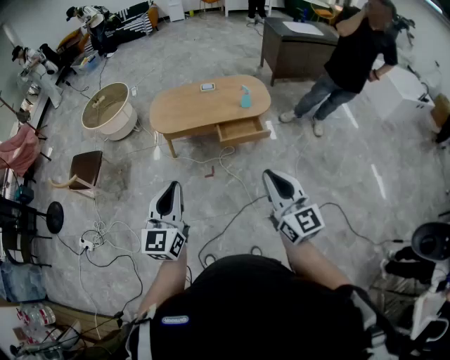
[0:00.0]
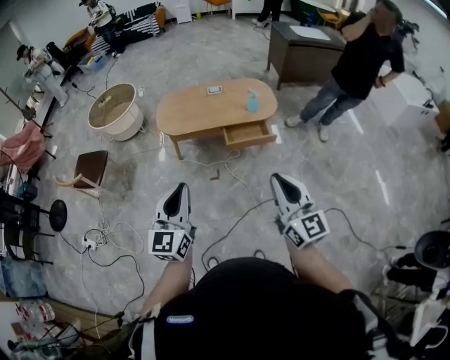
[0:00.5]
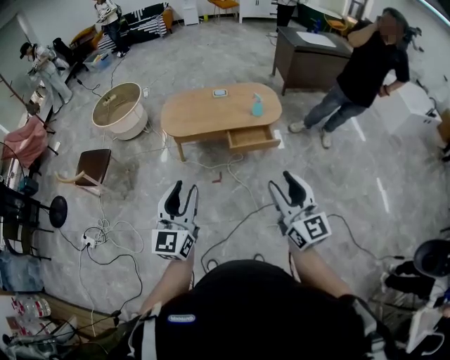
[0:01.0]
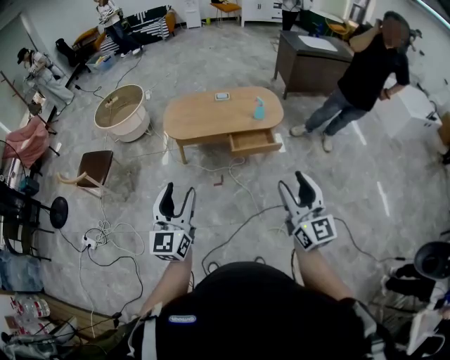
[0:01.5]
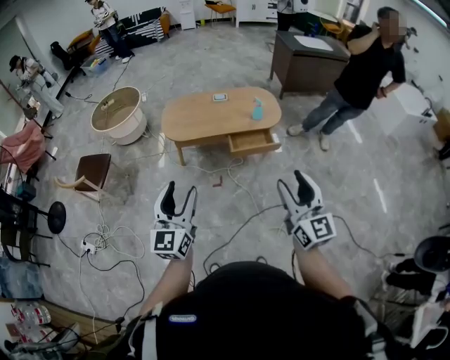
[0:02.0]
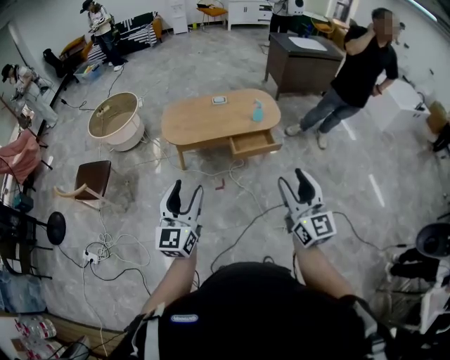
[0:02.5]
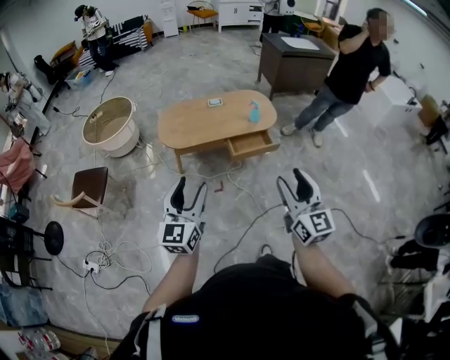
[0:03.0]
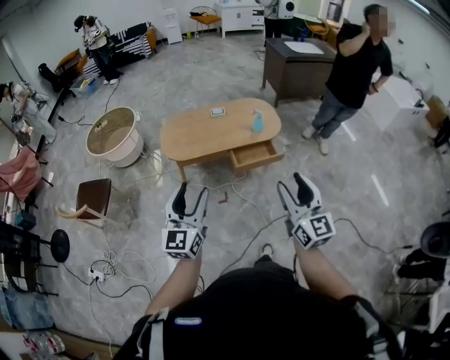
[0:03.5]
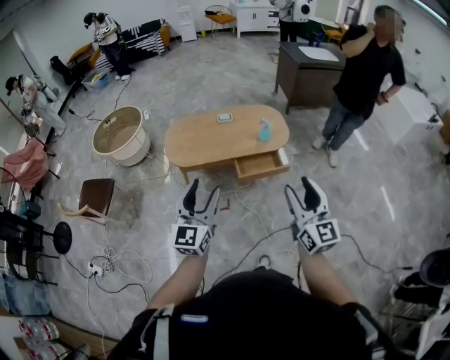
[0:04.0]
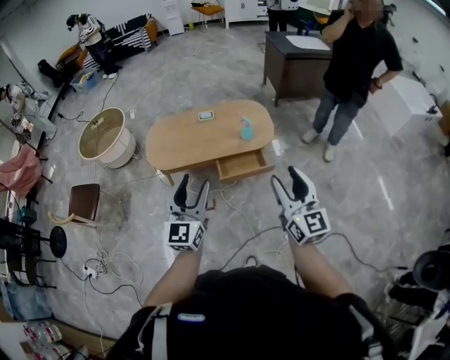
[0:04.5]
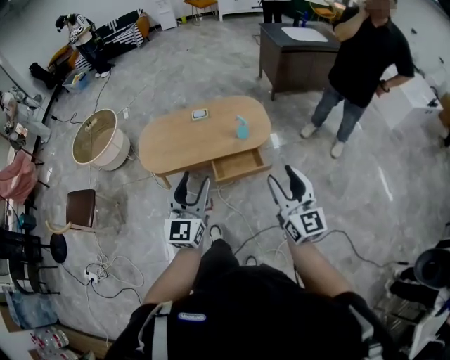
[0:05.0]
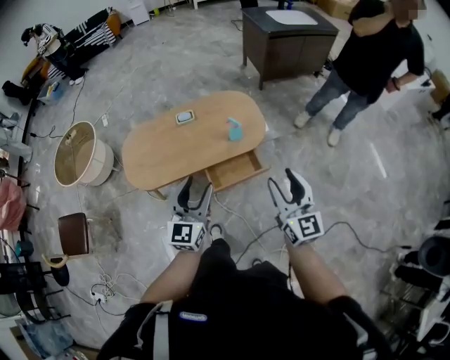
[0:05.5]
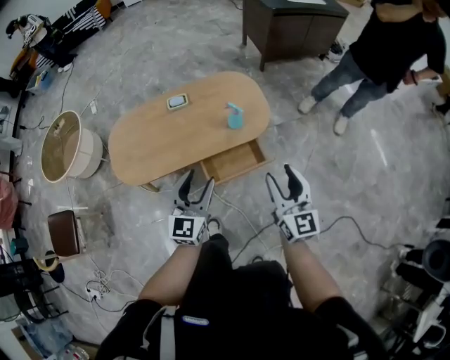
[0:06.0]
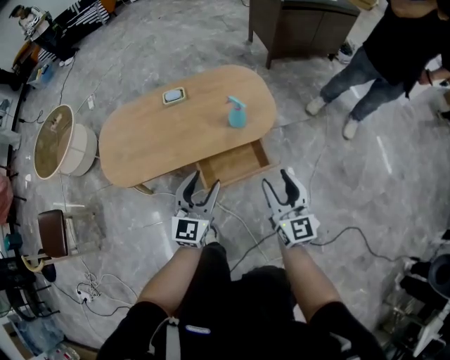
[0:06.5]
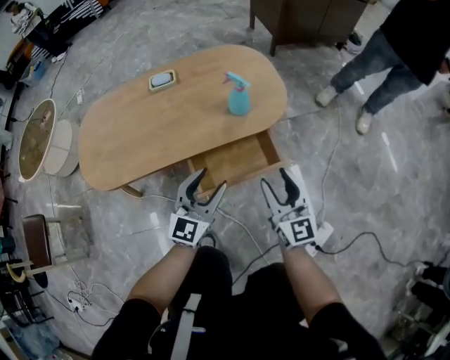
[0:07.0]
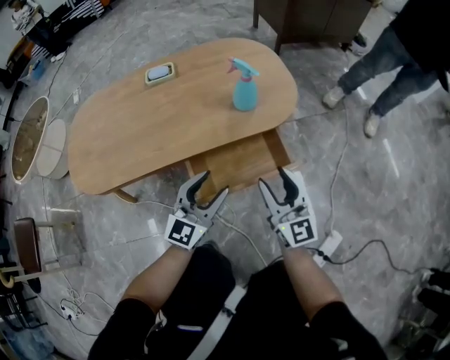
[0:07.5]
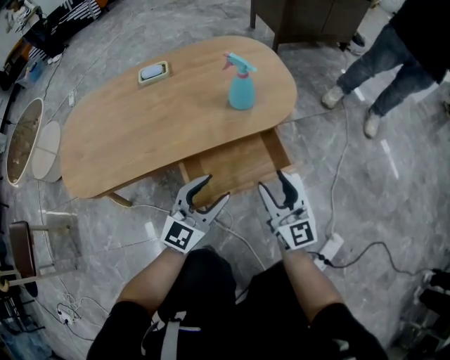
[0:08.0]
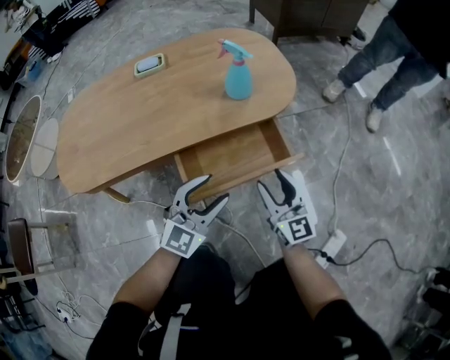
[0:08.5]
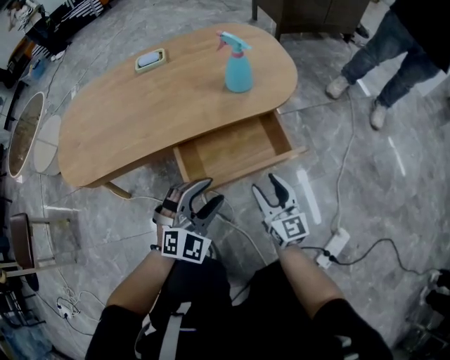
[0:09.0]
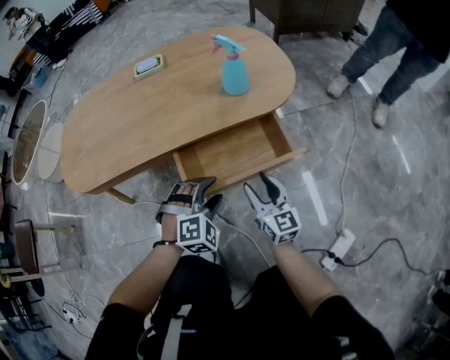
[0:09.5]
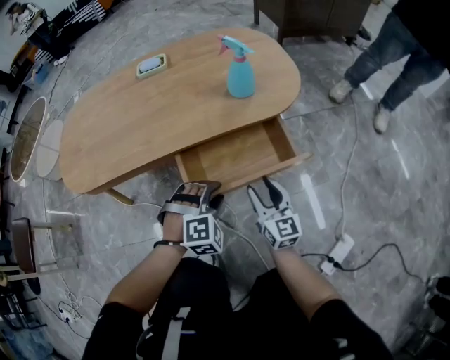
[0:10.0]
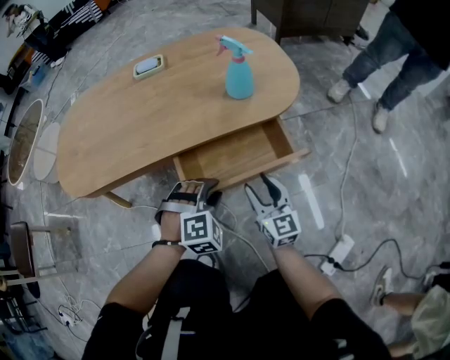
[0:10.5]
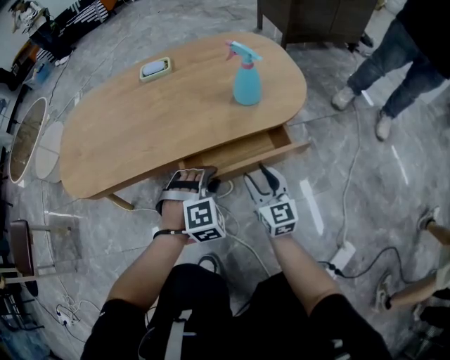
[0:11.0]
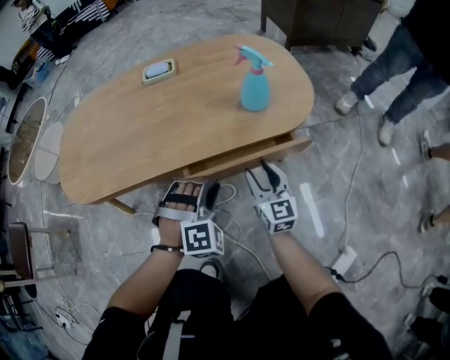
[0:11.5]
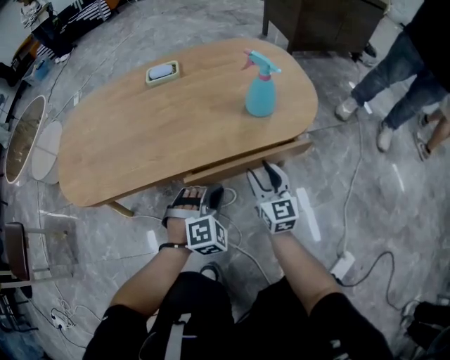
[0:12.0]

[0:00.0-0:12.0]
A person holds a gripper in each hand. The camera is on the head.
0:00.0 to 0:02.0: The right gripper opens up; the left gripper opens its fingers.
0:02.0 to 0:04.0: The grippers both shift forward by some 15 cm.
0:04.0 to 0:06.0: Both grippers move forward and downward, approximately 40 cm.
0:06.0 to 0:08.0: Both grippers move downward, about 35 cm. The left gripper rotates about 20 degrees.
0:08.0 to 0:10.0: Both grippers travel together downward, roughly 15 cm. The left gripper tilts its fingers roughly 50 degrees downward.
0:10.0 to 0:12.0: The right gripper goes about 10 cm forward. The left gripper is displaced forward by roughly 10 cm, and closes its fingers.

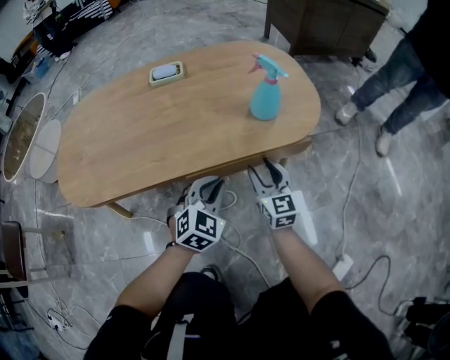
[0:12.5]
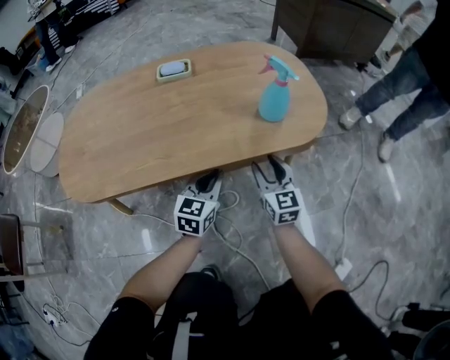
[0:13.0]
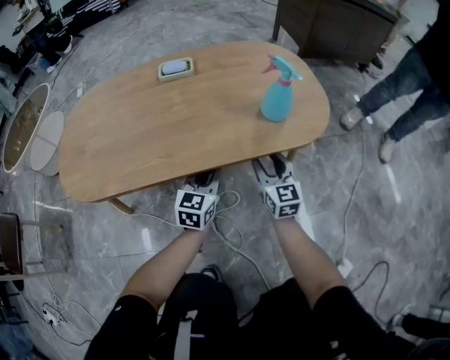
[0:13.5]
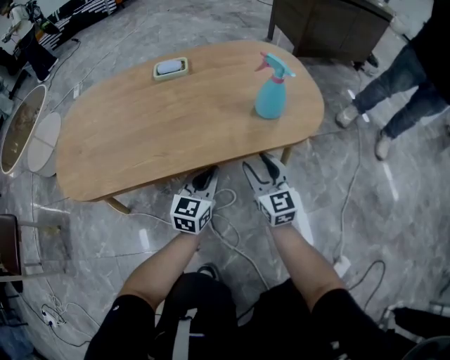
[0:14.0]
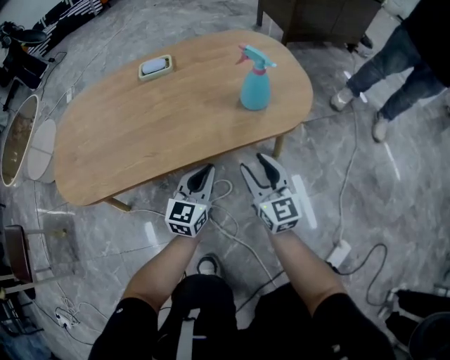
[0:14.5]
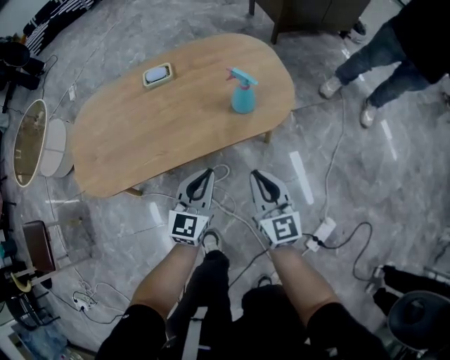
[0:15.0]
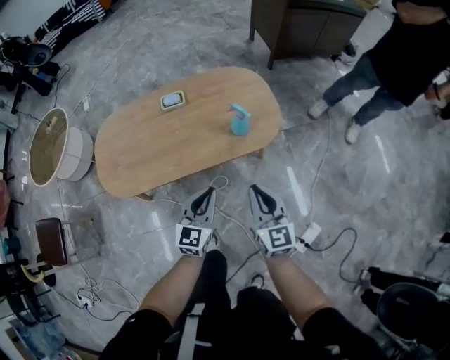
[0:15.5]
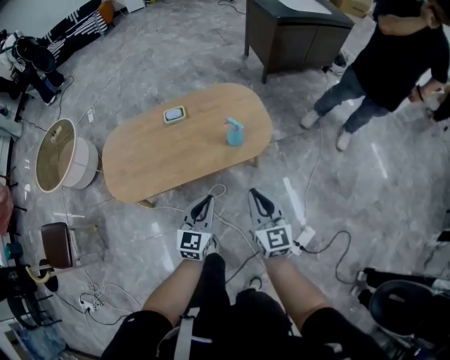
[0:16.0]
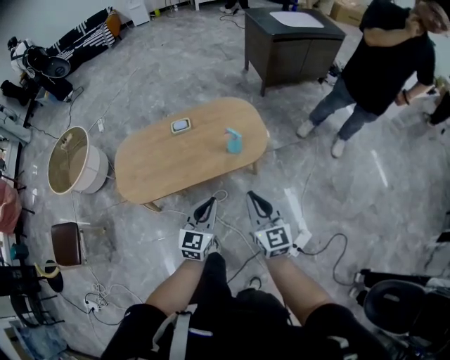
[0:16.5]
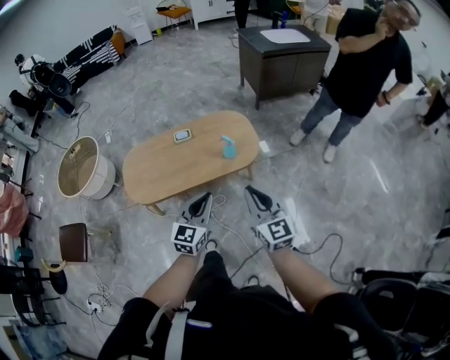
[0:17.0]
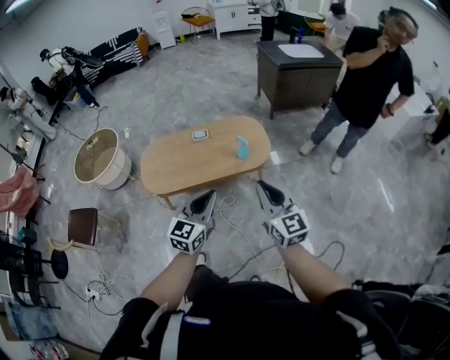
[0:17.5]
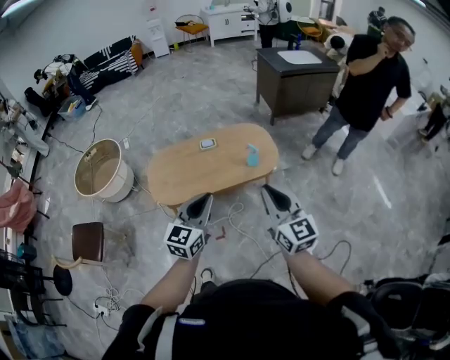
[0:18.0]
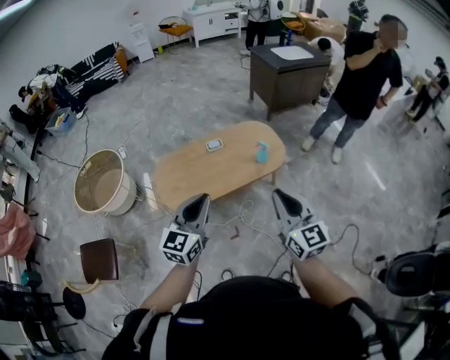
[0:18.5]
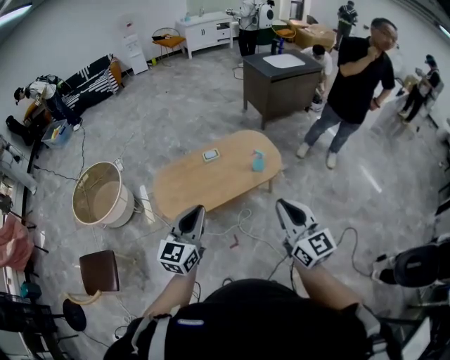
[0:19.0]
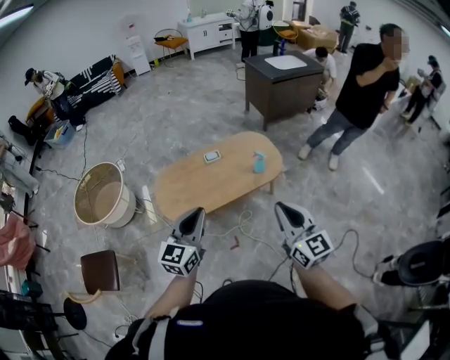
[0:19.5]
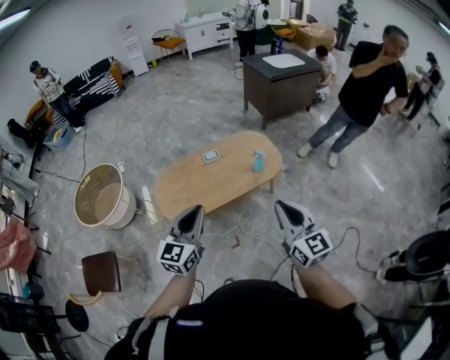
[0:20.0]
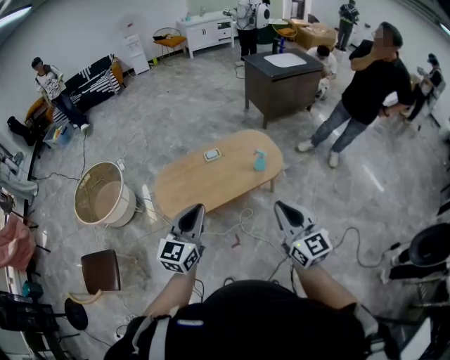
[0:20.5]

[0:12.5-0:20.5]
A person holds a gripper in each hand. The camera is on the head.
0:12.5 to 0:14.5: The left gripper swivels roughly 40 degrees. The right gripper goes some 5 cm upward.
0:14.5 to 0:16.5: The two grippers go roughly 40 cm upward. The right gripper closes.
0:16.5 to 0:18.5: The grippers both shift upward, to the left and backward by approximately 35 cm.
0:18.5 to 0:20.5: There are only small adjustments of the grippers.

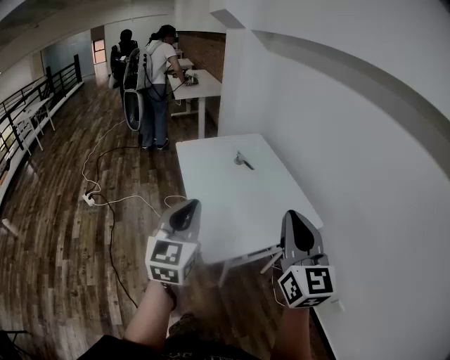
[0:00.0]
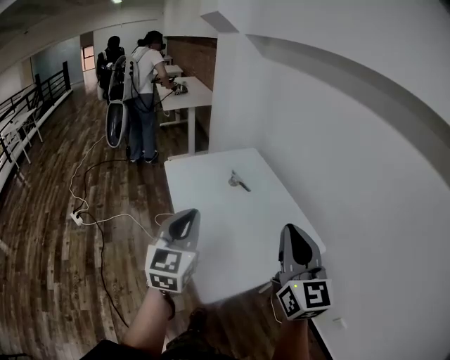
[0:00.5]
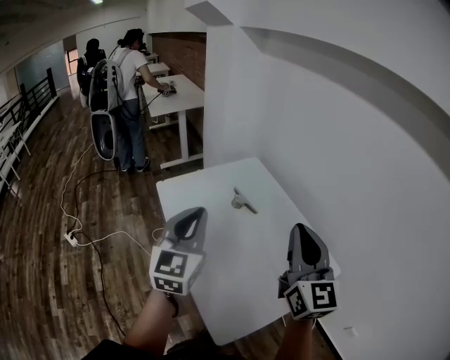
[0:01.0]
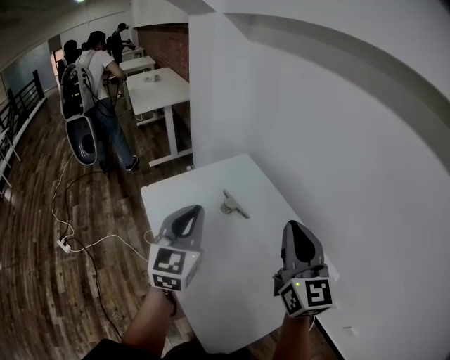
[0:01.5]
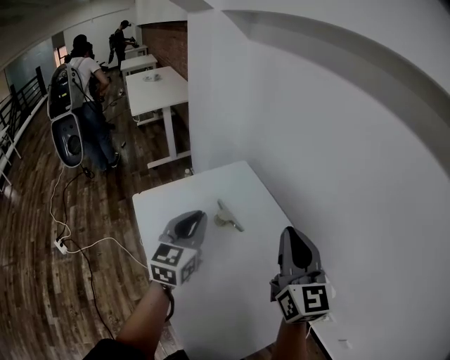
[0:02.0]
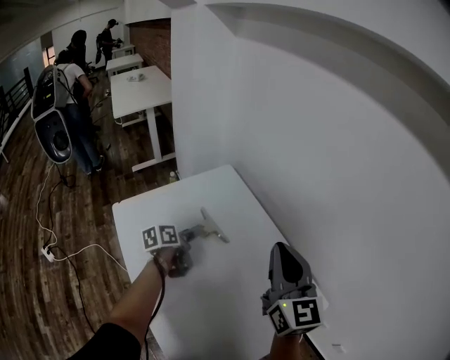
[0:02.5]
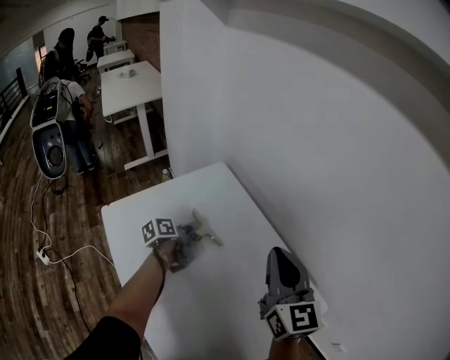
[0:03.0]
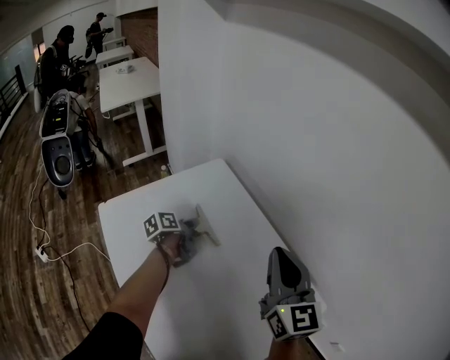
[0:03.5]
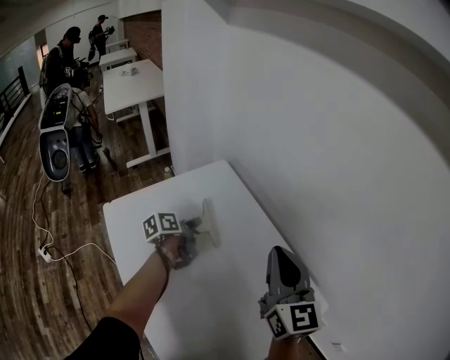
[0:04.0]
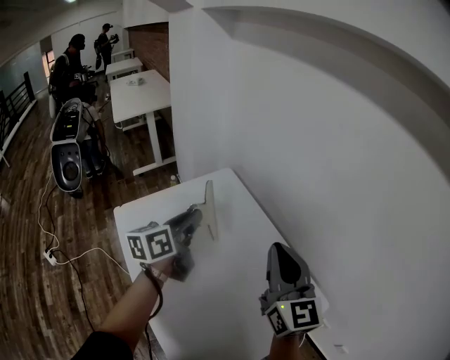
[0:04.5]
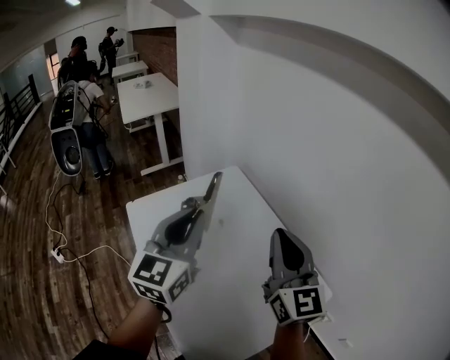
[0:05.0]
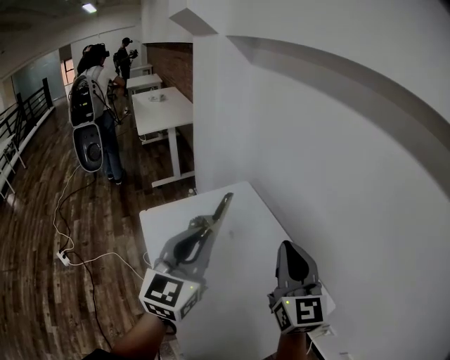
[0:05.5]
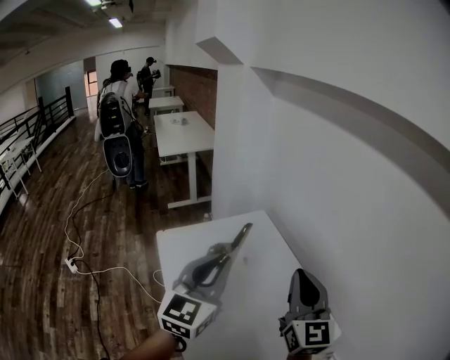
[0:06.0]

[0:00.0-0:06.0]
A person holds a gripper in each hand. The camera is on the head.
0:00.0 to 0:02.0: The two grippers go some 40 cm forward.
0:02.0 to 0:04.0: The left gripper travels downward and forward by roughly 25 cm, twists approximately 60 degrees counterclockwise, seen from behind, and opens and closes again. The right gripper shifts approximately 5 cm downward.
0:04.0 to 0:06.0: The right gripper travels upward and backward by approximately 10 cm. Meanwhile the left gripper heads upward and backward, covering approximately 40 cm, and twists approximately 60 degrees clockwise, seen from behind.

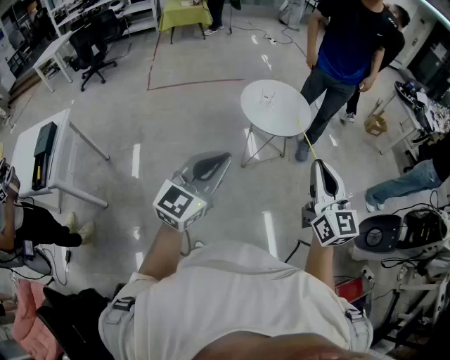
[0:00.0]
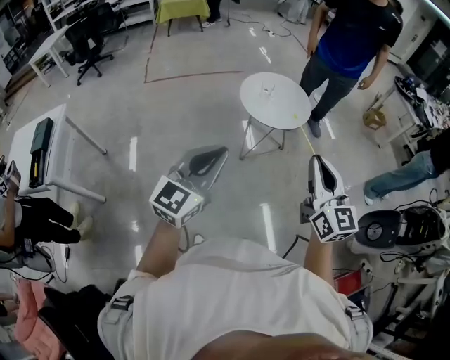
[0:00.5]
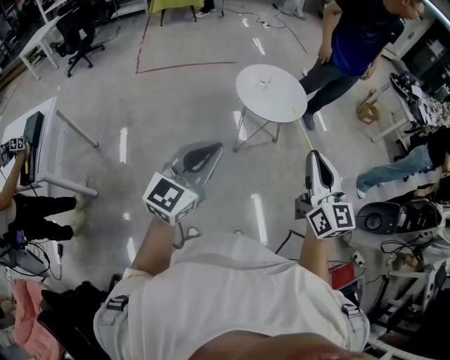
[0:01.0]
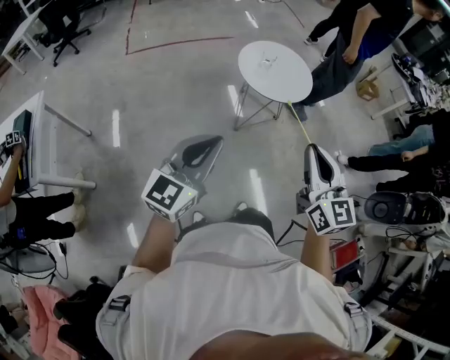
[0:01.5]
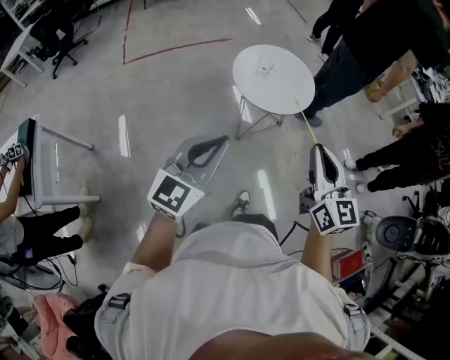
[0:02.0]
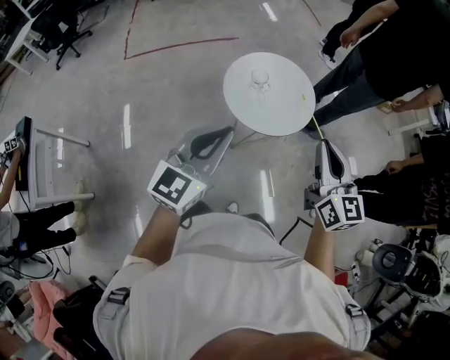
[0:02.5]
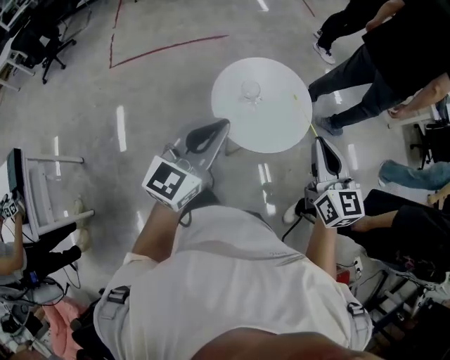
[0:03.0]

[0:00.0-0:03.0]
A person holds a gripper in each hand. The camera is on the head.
0:00.0 to 0:01.5: The left gripper travels to the left and downward by some 15 cm. Meanwhile the right gripper moves to the left, approximately 15 cm.
0:01.5 to 0:03.0: Both grippers are carried forward, about 50 cm.
